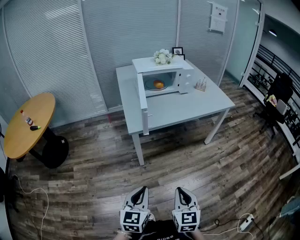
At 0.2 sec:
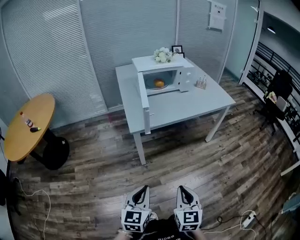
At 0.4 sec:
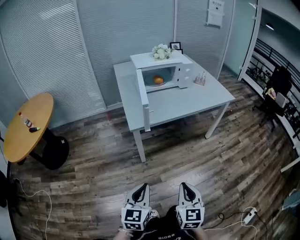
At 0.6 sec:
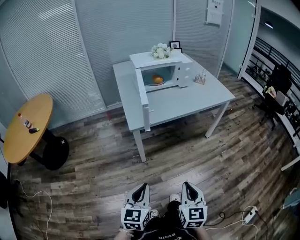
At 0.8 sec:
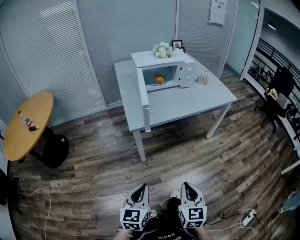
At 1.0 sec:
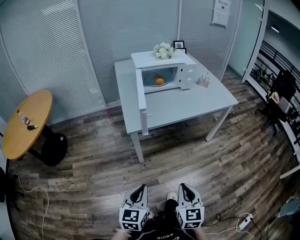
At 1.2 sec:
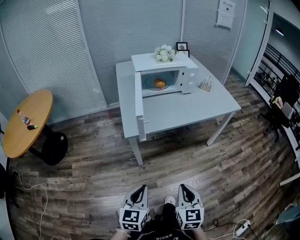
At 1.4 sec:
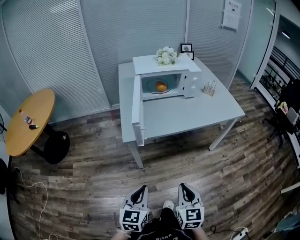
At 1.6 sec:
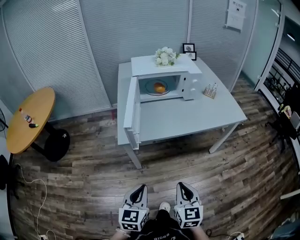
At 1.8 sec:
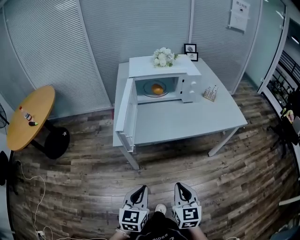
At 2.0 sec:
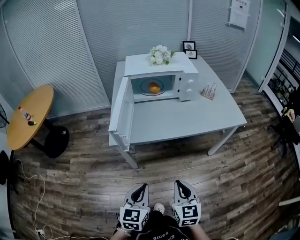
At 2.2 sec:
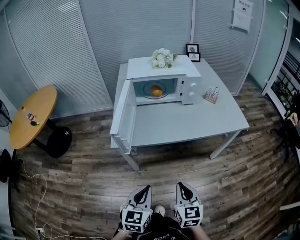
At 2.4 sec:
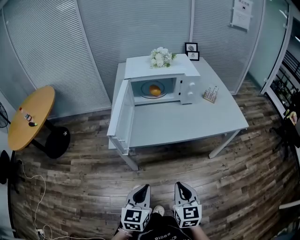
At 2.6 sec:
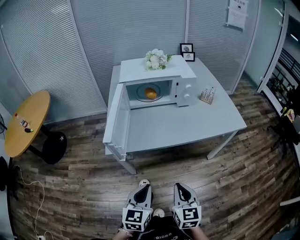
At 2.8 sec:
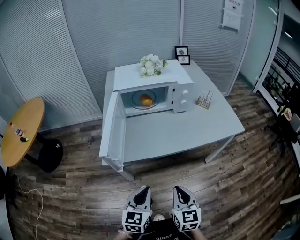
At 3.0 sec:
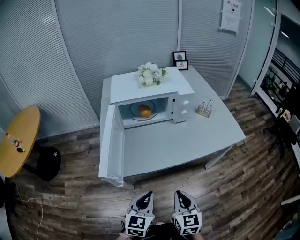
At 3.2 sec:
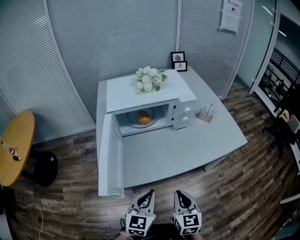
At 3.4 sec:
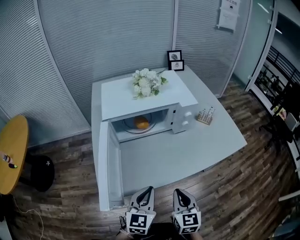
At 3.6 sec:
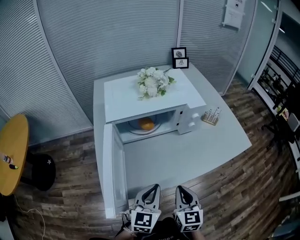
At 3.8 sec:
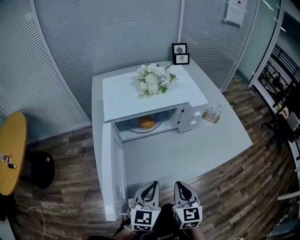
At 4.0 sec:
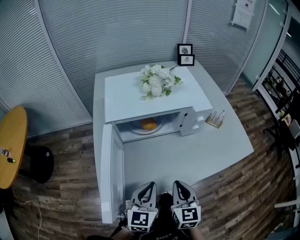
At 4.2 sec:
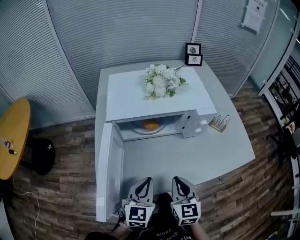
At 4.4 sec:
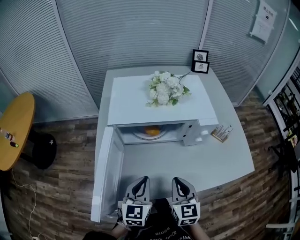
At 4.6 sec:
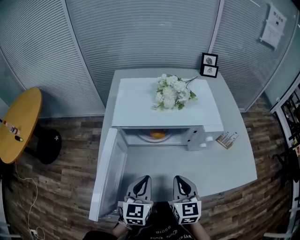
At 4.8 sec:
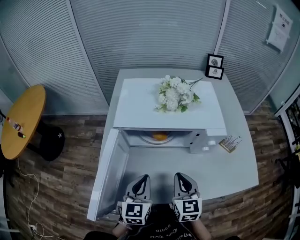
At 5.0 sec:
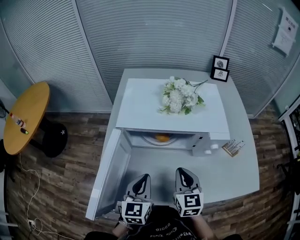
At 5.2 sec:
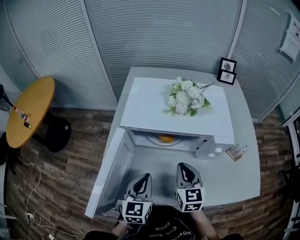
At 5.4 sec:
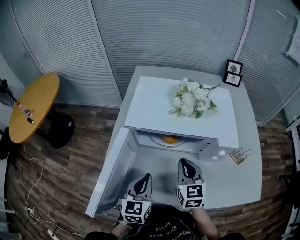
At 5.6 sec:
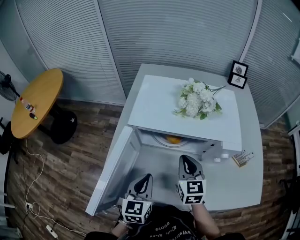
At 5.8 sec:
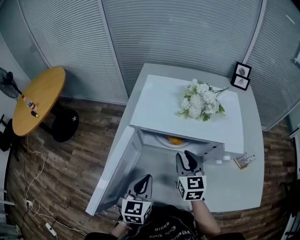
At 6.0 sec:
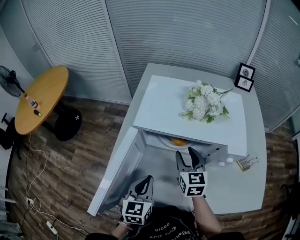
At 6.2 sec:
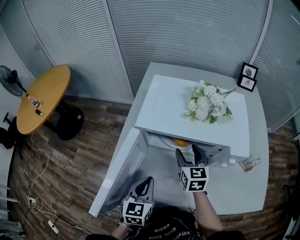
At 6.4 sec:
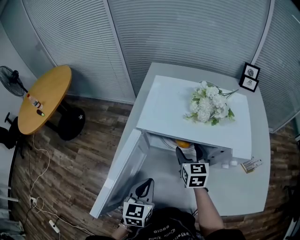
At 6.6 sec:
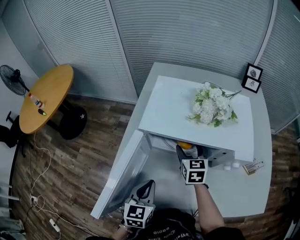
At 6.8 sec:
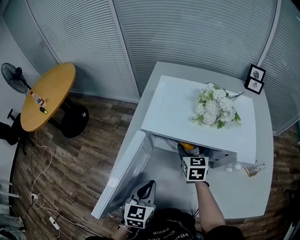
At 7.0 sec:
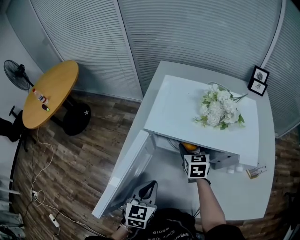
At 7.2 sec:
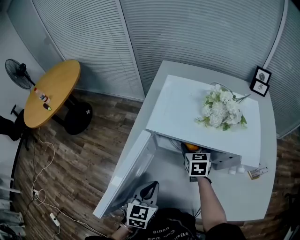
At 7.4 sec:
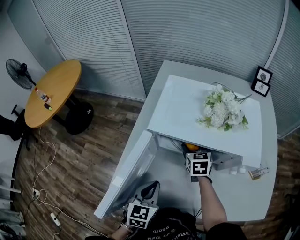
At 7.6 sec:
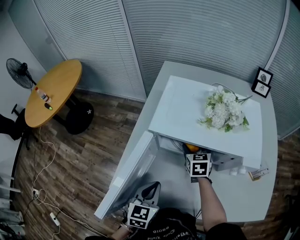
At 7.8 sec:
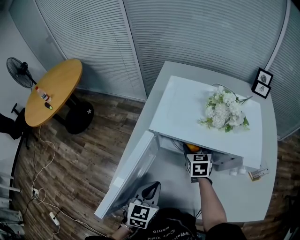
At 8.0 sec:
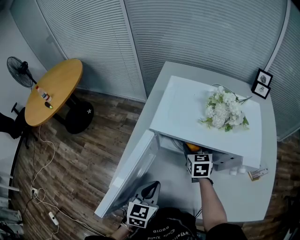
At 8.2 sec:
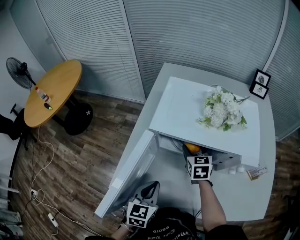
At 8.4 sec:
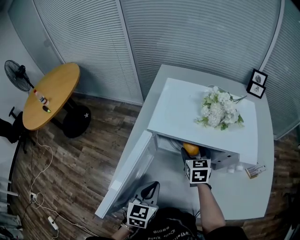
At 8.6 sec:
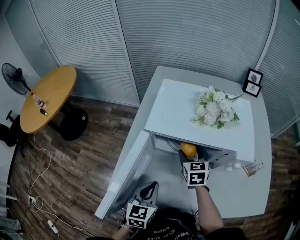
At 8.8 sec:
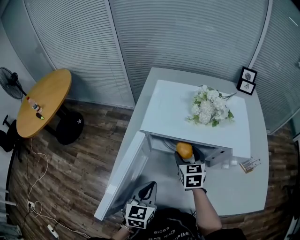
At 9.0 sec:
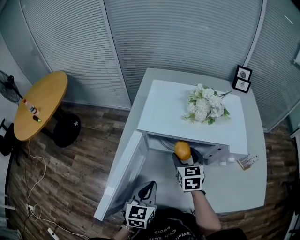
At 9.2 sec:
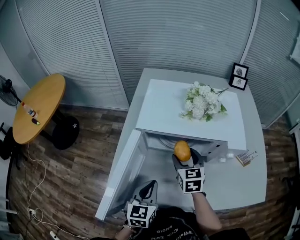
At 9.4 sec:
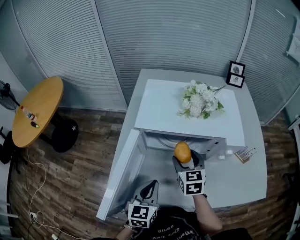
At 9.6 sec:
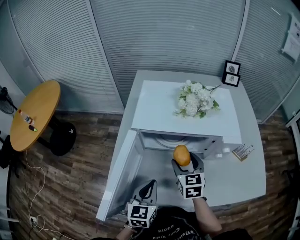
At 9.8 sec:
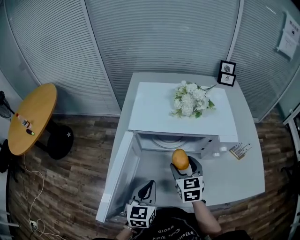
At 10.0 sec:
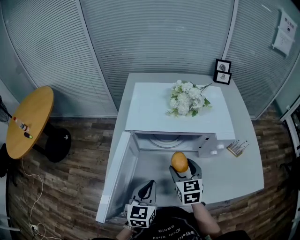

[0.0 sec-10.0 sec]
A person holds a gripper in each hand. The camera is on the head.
0.0 sec to 1.4 sec: The right gripper moves forward and to the right, about 15 cm. Meanwhile the left gripper moves forward, about 10 cm.
1.4 sec to 2.8 sec: The grippers both shift forward and to the right by some 20 cm.
2.8 sec to 4.2 sec: The two grippers go about 25 cm forward.
4.2 sec to 5.8 sec: The left gripper heads forward, covering about 5 cm, and rotates approximately 20 degrees, while the right gripper is displaced forward by about 20 cm.
5.8 sec to 7.2 sec: The right gripper travels forward and downward by approximately 15 cm, and opens its fingers.
7.2 sec to 8.6 sec: The grippers move only a little.
8.6 sec to 10.0 sec: The right gripper shifts some 10 cm backward.

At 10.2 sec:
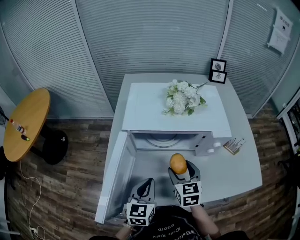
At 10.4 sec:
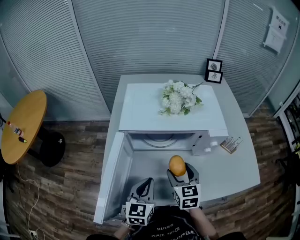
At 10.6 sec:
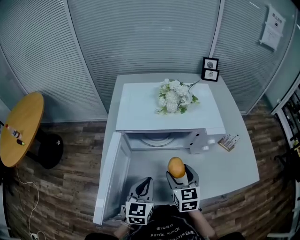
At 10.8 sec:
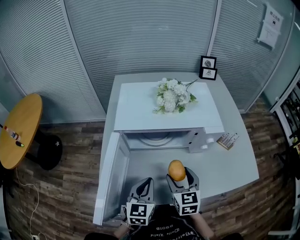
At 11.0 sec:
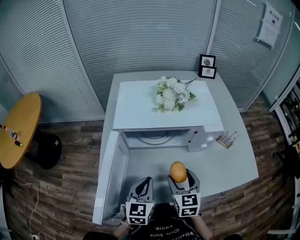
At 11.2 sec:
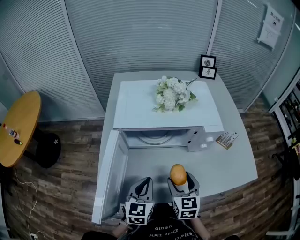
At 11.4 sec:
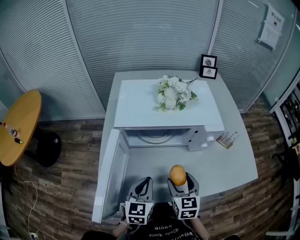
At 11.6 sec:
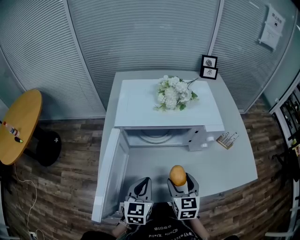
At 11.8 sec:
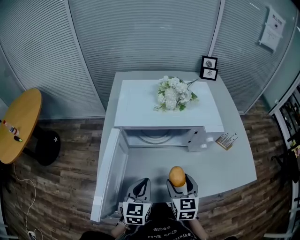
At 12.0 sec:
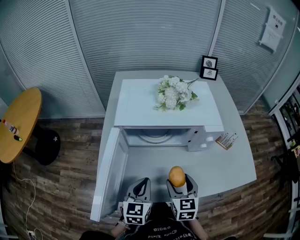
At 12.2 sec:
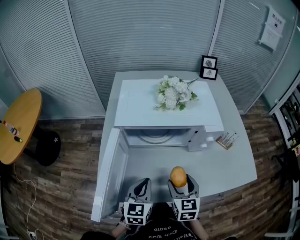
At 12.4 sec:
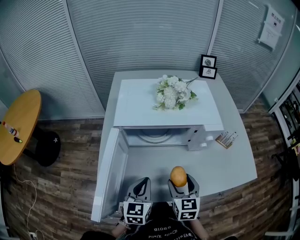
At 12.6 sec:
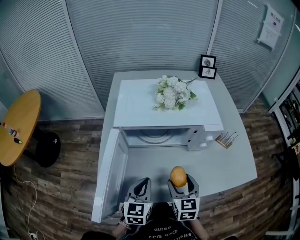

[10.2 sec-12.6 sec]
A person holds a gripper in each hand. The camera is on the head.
10.2 sec to 11.4 sec: The right gripper goes about 5 cm backward.
11.4 sec to 12.6 sec: Neither gripper changes place.

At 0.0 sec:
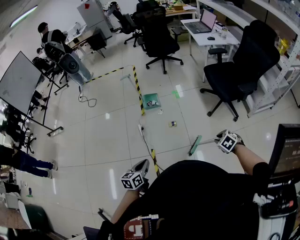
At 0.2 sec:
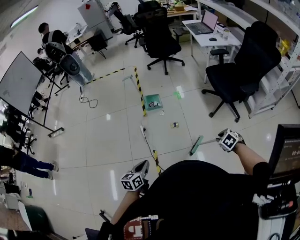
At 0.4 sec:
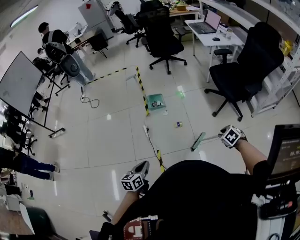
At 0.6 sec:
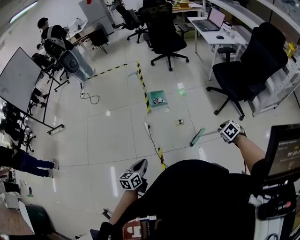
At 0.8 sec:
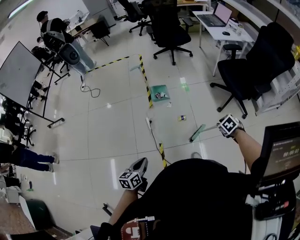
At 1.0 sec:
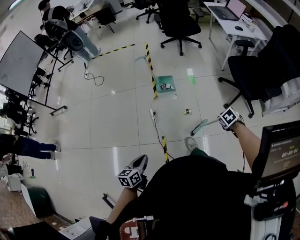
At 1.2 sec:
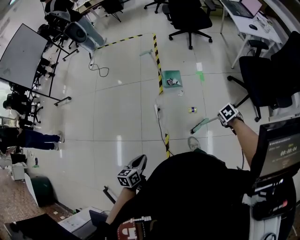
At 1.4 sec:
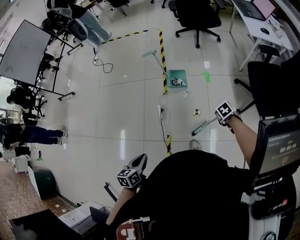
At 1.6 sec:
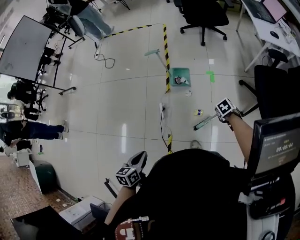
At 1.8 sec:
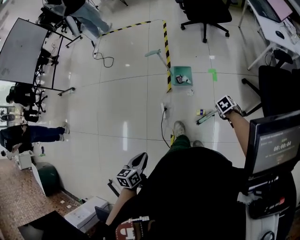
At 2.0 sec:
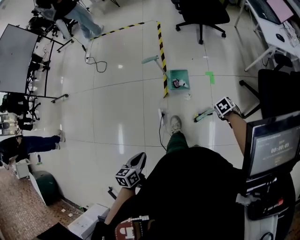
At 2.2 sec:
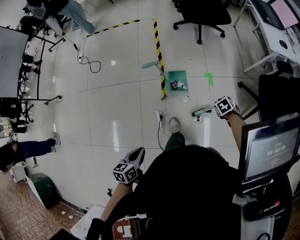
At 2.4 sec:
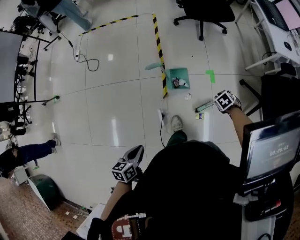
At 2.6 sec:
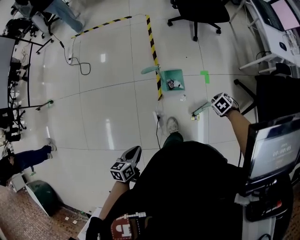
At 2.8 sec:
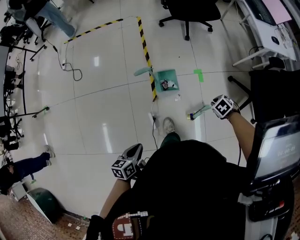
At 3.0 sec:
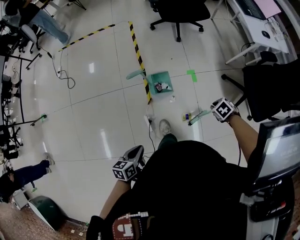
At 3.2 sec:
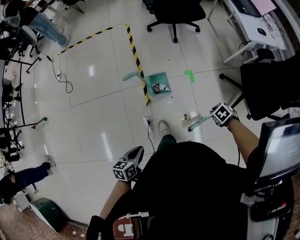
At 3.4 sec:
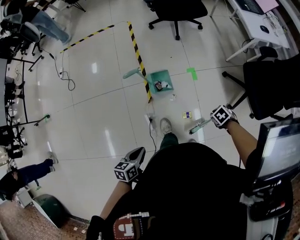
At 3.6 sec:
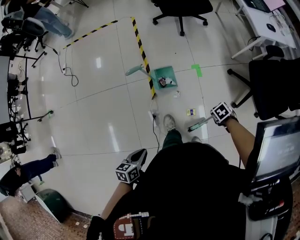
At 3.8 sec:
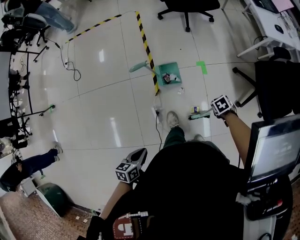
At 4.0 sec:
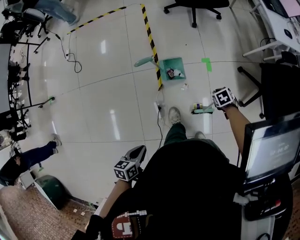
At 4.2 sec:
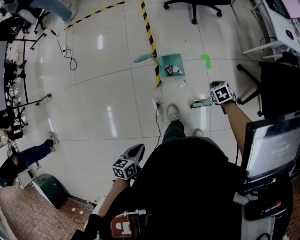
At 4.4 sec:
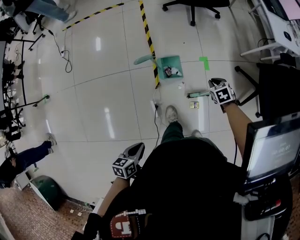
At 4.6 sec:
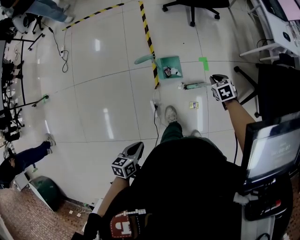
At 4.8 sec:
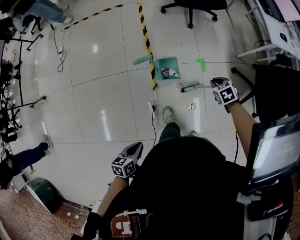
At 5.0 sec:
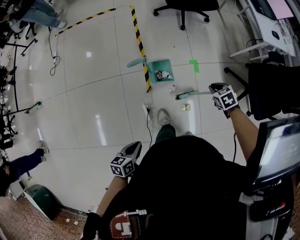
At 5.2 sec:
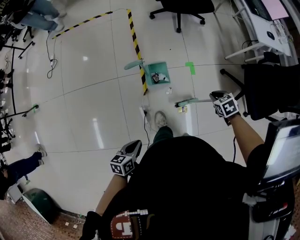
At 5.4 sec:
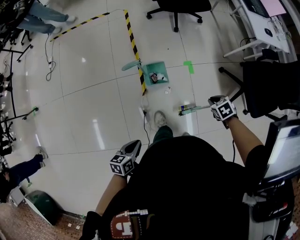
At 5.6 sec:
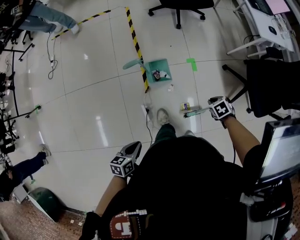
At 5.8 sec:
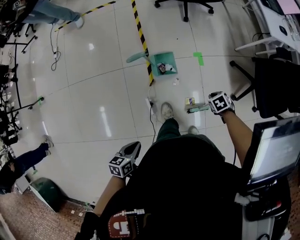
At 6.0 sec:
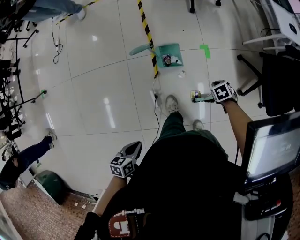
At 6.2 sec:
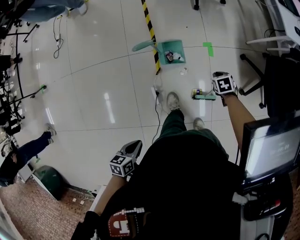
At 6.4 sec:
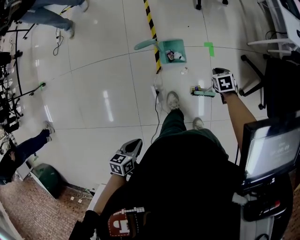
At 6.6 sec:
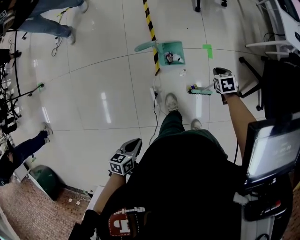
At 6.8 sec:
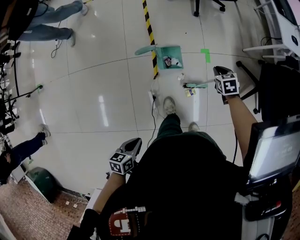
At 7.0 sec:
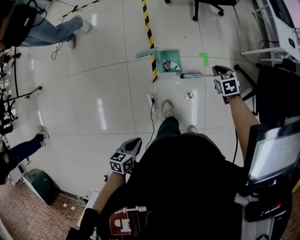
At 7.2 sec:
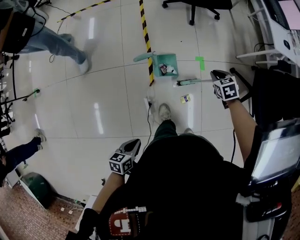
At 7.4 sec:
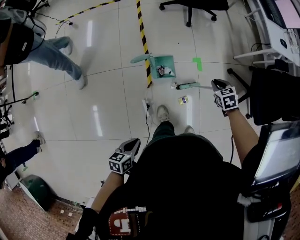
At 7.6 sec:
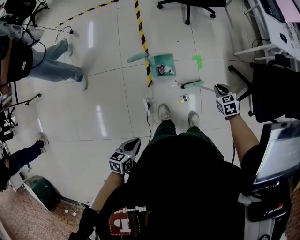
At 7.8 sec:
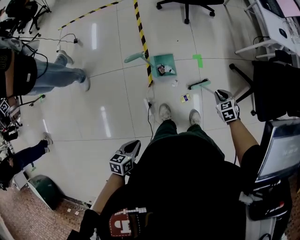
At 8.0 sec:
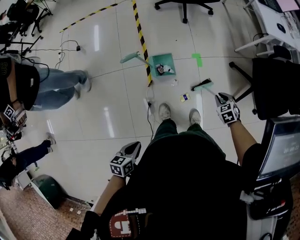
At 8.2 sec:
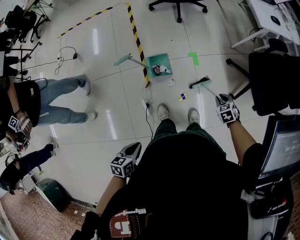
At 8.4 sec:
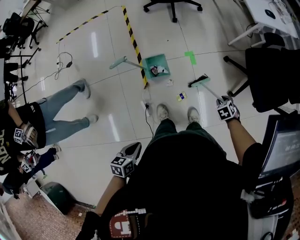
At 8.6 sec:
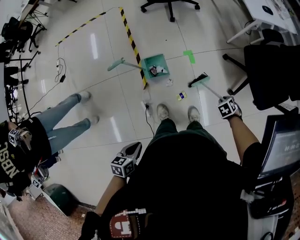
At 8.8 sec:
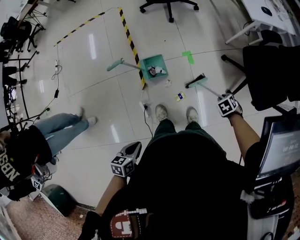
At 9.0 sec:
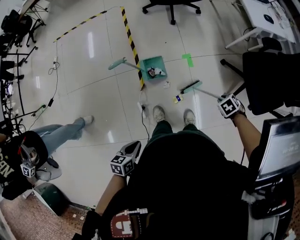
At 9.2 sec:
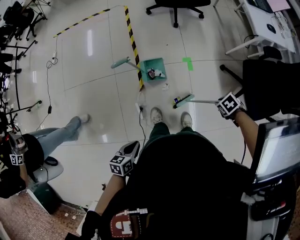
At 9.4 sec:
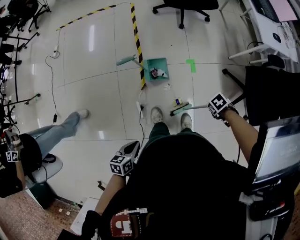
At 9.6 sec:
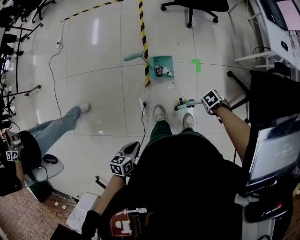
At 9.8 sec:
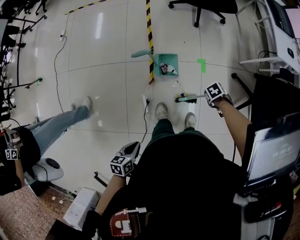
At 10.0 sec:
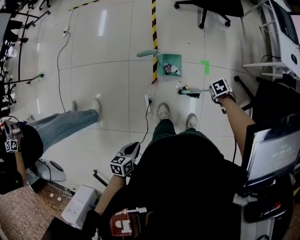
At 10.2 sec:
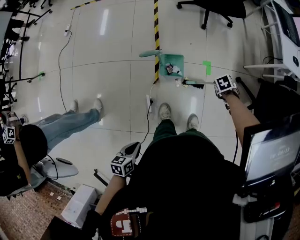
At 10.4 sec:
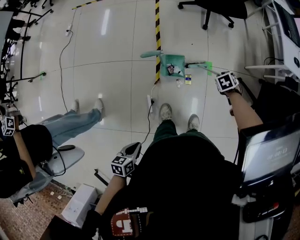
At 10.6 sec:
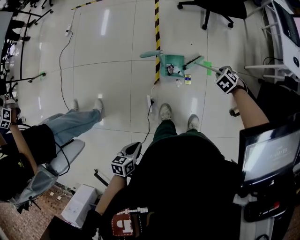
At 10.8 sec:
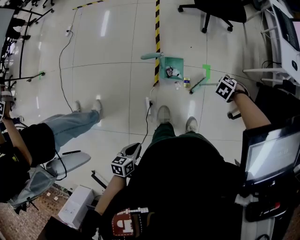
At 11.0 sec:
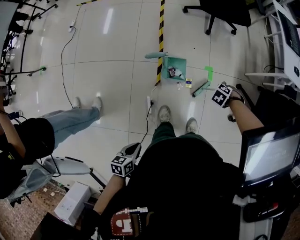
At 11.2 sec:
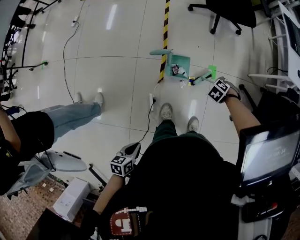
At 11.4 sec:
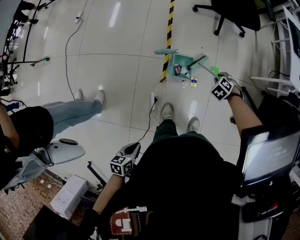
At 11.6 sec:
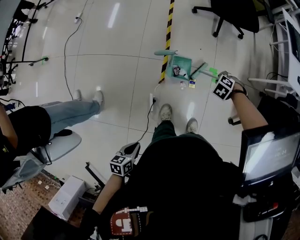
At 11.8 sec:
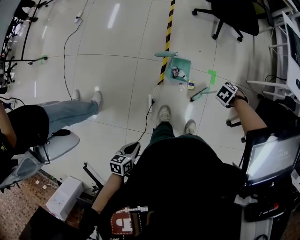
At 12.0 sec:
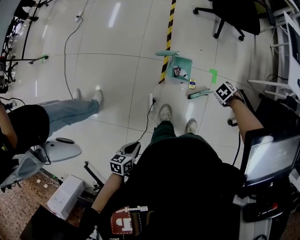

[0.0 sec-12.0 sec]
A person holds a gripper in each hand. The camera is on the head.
0.0 sec to 1.6 sec: The left gripper shifts by approximately 25 cm.
1.6 sec to 3.0 sec: The left gripper shifts by approximately 30 cm, and turns by about 20 degrees.
7.6 sec to 9.0 sec: The left gripper shifts by approximately 10 cm.
9.0 sec to 10.4 sec: The left gripper ends up roughly 10 cm from where it was.
